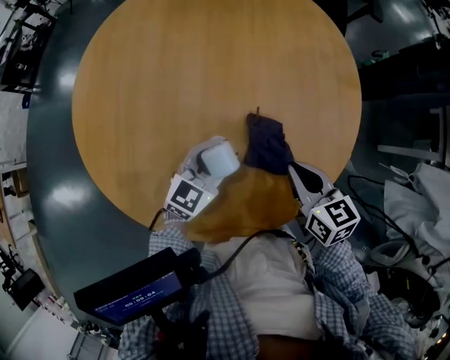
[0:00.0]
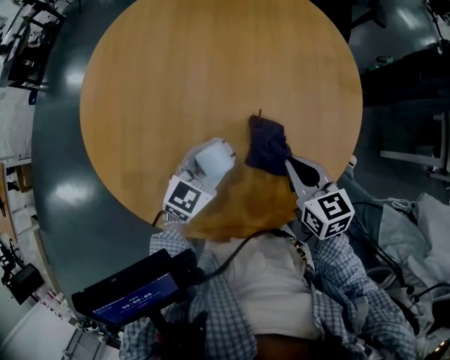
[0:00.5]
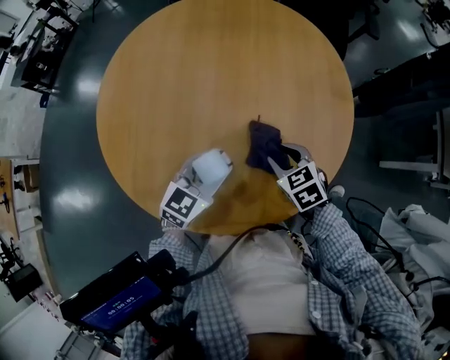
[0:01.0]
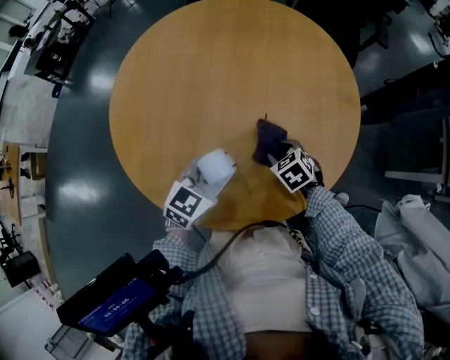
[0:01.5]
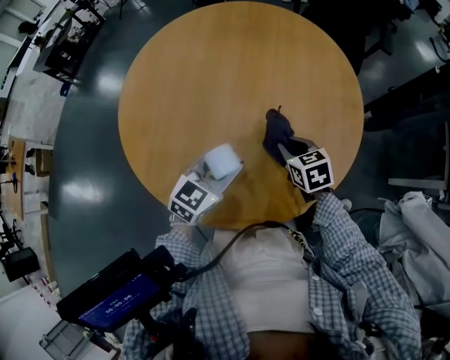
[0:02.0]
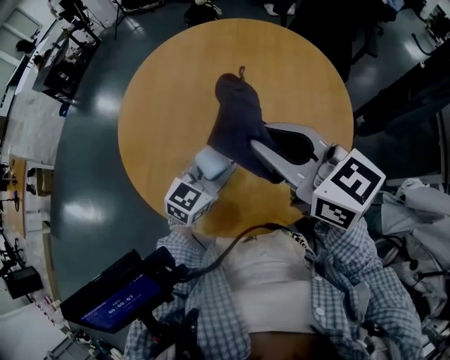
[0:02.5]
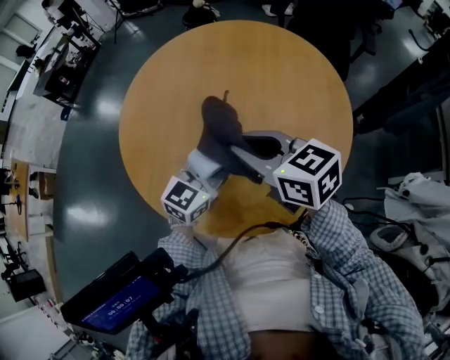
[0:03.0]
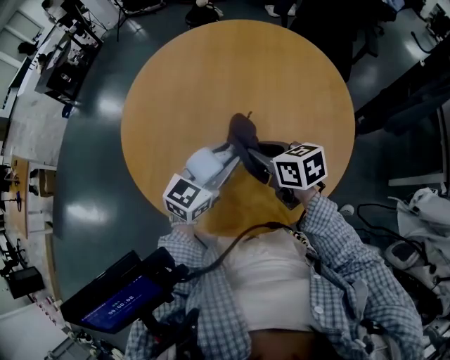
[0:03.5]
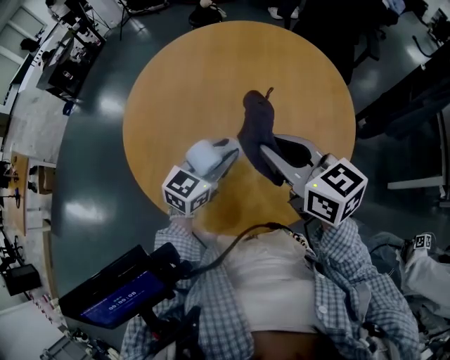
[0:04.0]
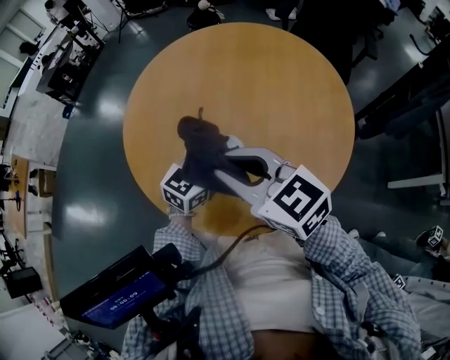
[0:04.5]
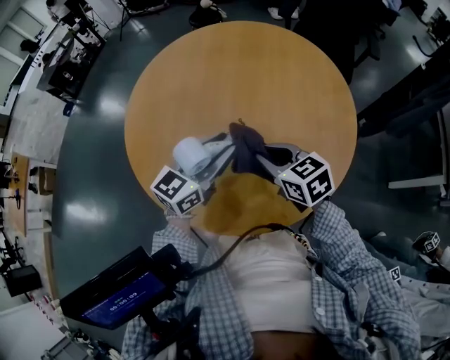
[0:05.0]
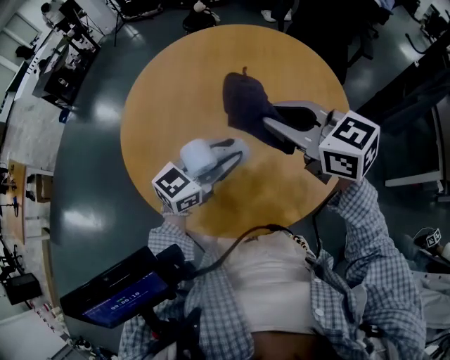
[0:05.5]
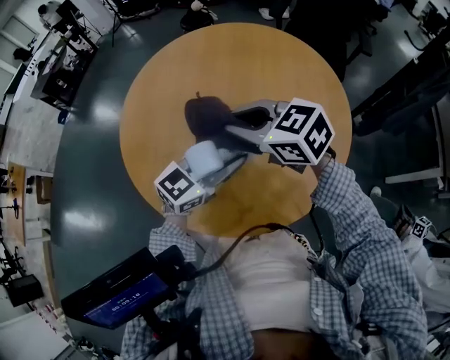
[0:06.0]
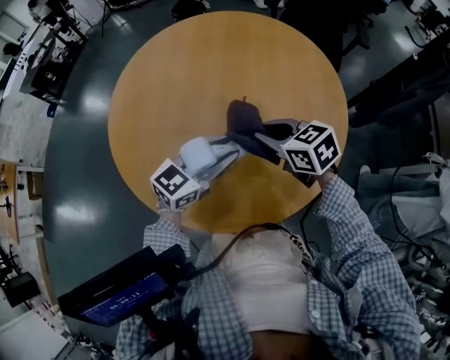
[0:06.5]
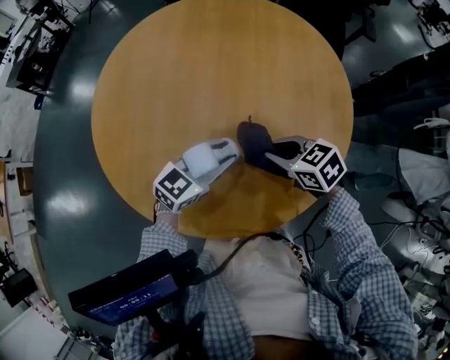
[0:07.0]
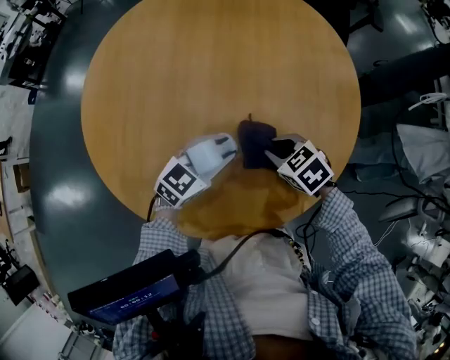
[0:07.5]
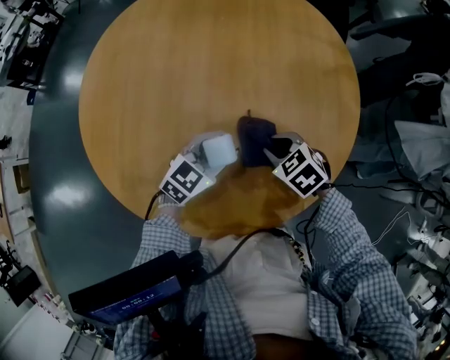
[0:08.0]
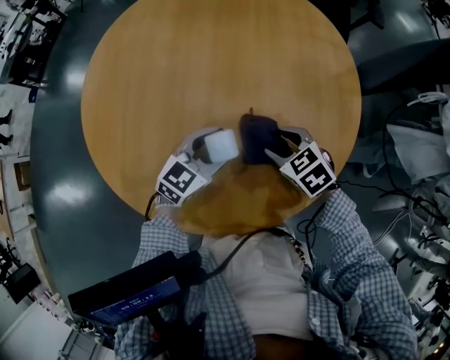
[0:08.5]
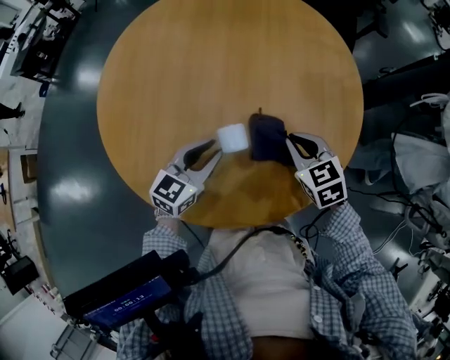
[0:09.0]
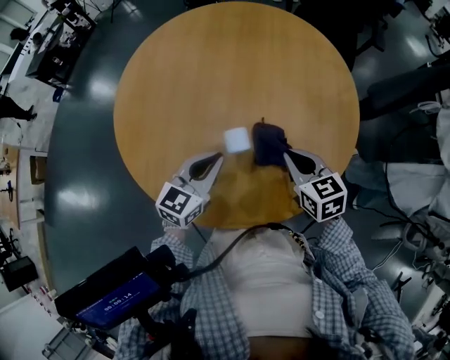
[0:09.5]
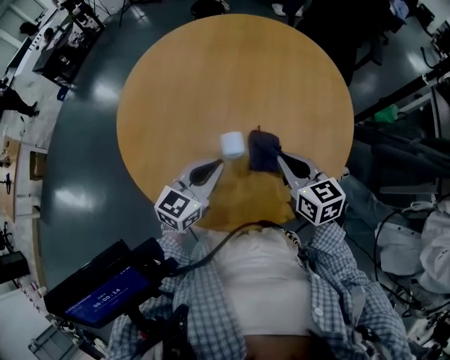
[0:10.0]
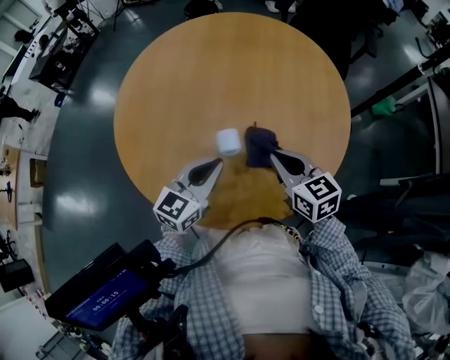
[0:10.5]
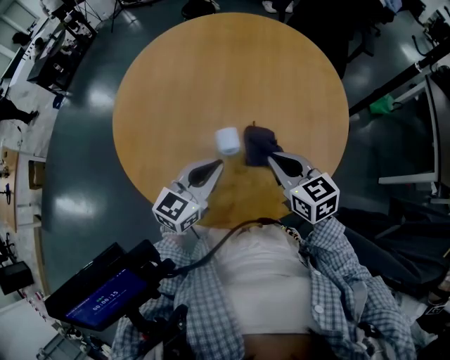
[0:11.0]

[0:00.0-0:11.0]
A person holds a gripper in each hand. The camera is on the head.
0:00.0 to 0:02.0: The left gripper goes approximately 5 cm upward; the right gripper shifts by some 10 cm, swivels approximately 20 degrees, and opens, then closes again.
0:02.0 to 0:03.5: The right gripper heads to the left, covering approximately 10 cm, travels upward and back again, some 30 cm each way, and rotates roughly 30 degrees. Meanwhile the left gripper ends up roughly 5 cm from where it was.
0:03.5 to 0:05.5: The right gripper swings up and down, some 15 cm each way, with 2 reversals, and turns by about 30 degrees.
0:05.5 to 0:07.5: The left gripper moves downward, some 15 cm, while the right gripper is displaced downward by about 30 cm, and angles its fingers downward, by roughly 40 degrees.
0:07.5 to 0:09.0: The left gripper shifts by about 5 cm. Meanwhile the right gripper travels upward by approximately 5 cm, rotates roughly 20 degrees, and opens and closes again.
0:09.0 to 0:11.0: Both grippers travel together upward, roughly 5 cm. The left gripper closes up. The right gripper changes its angle by approximately 20 degrees.

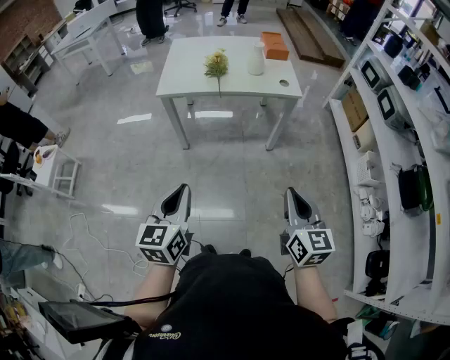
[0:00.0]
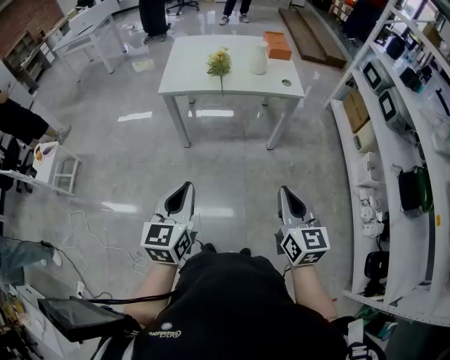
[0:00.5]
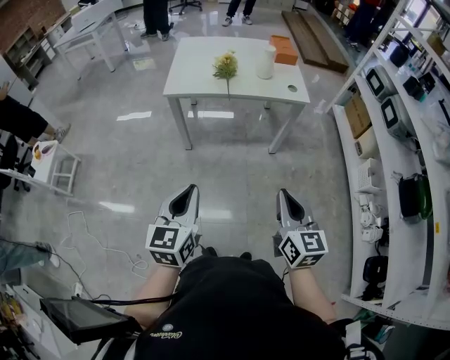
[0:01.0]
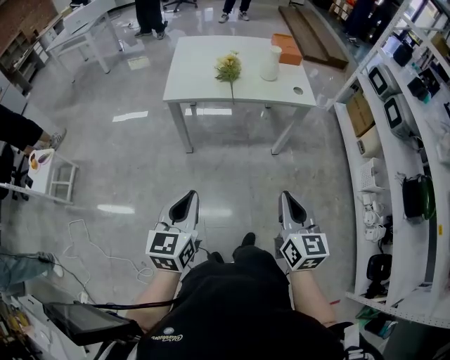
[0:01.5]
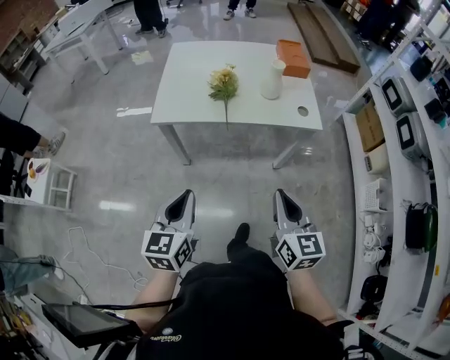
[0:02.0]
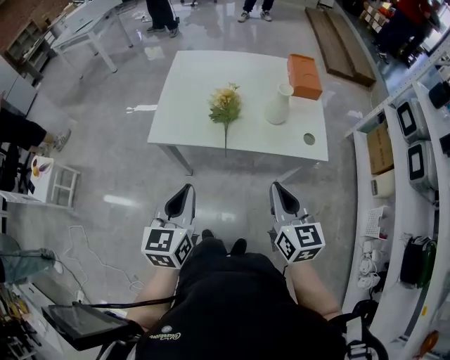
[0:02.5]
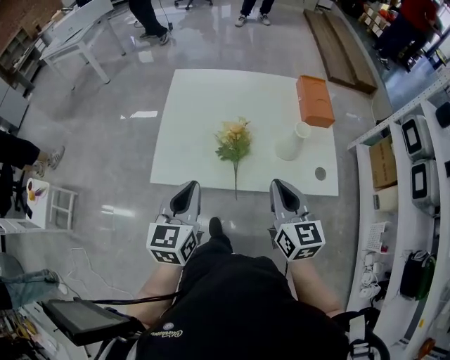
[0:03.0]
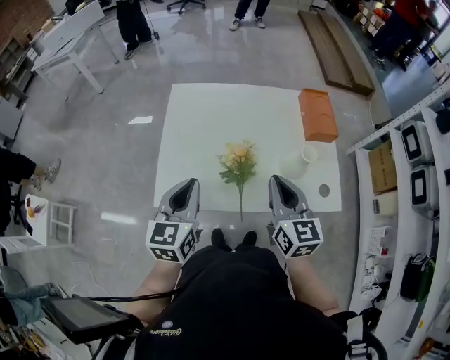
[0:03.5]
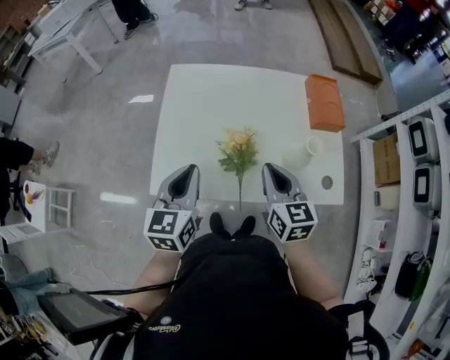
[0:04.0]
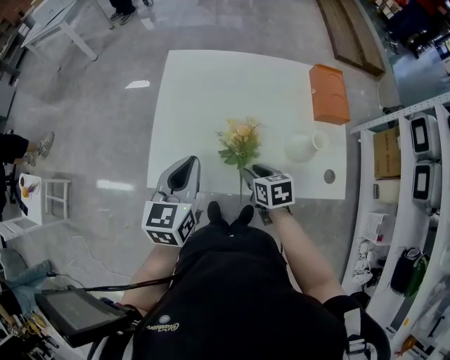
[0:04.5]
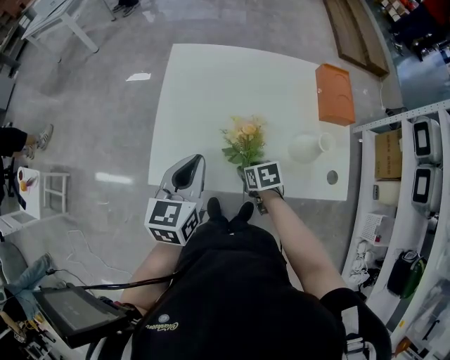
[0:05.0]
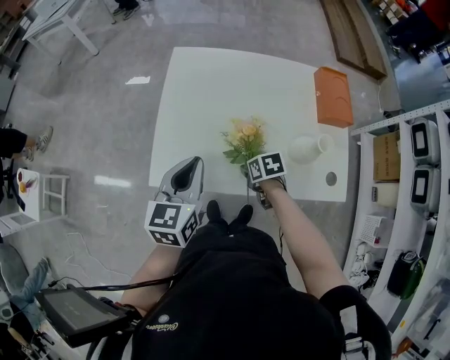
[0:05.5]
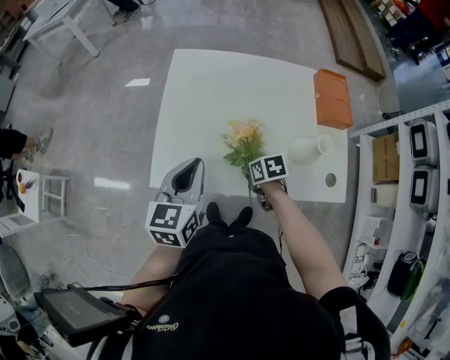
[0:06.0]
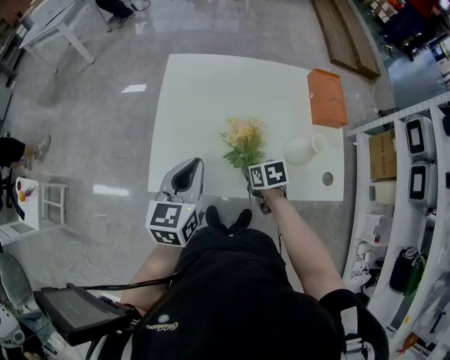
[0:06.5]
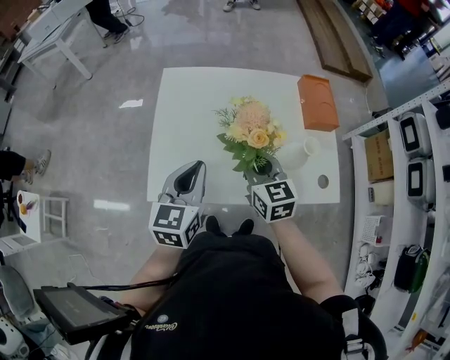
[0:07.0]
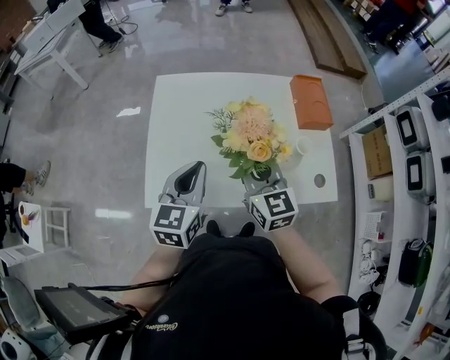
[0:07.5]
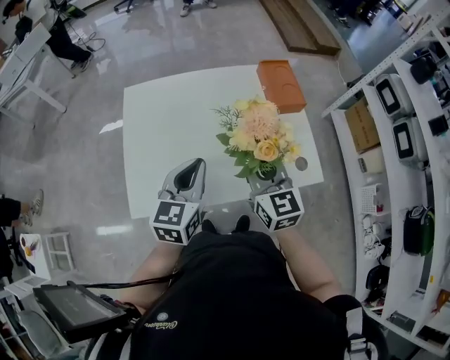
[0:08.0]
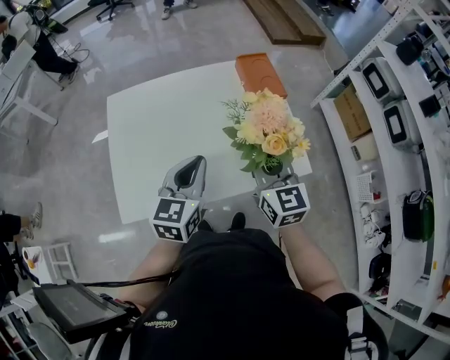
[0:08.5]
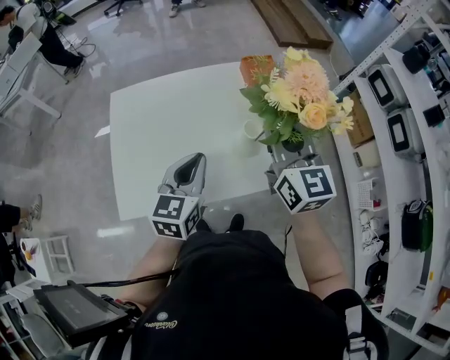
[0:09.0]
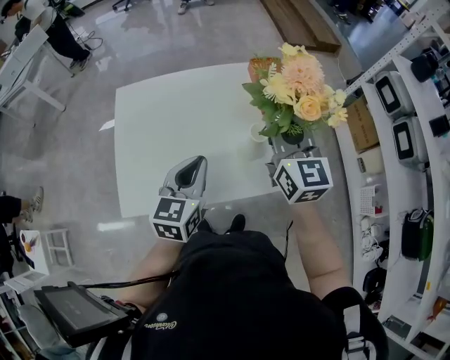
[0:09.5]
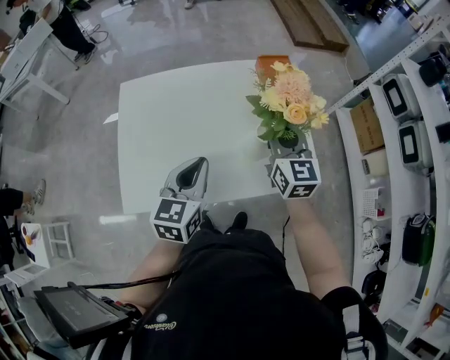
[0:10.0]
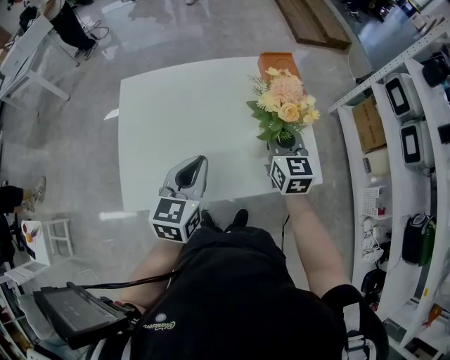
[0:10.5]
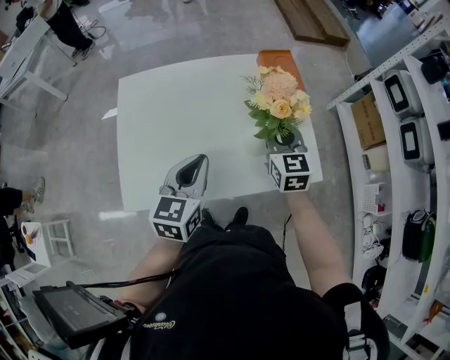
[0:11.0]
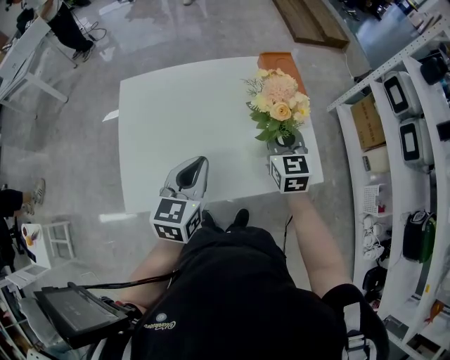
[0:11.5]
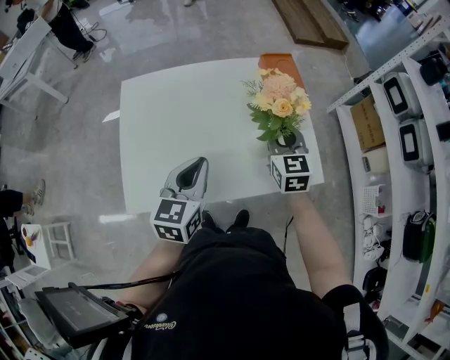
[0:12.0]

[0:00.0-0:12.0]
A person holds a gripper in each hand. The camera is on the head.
0:00.0 to 0:02.0: The grippers both shift forward by some 25 cm.
0:02.0 to 0:04.0: Both grippers are carried forward, some 40 cm.
0:04.0 to 0:06.0: The right gripper goes some 20 cm downward, angles its fingers downward, by approximately 40 degrees, and opens, then closes again.
0:06.0 to 0:08.0: The left gripper shifts by some 10 cm. Meanwhile the right gripper moves upward, some 25 cm, and tilts its fingers roughly 50 degrees upward.
0:08.0 to 0:10.0: The right gripper heads forward and to the right, covering some 15 cm.
0:10.0 to 0:12.0: The right gripper is displaced downward by some 5 cm.

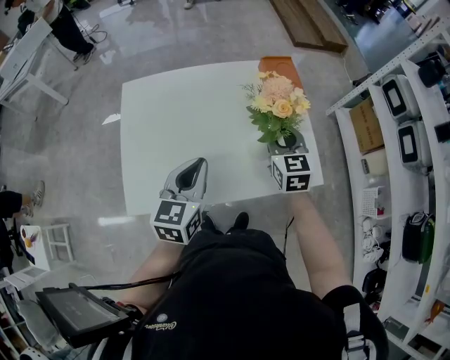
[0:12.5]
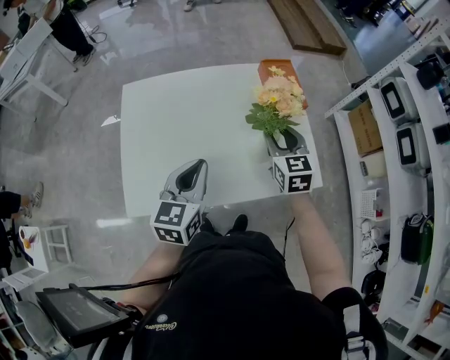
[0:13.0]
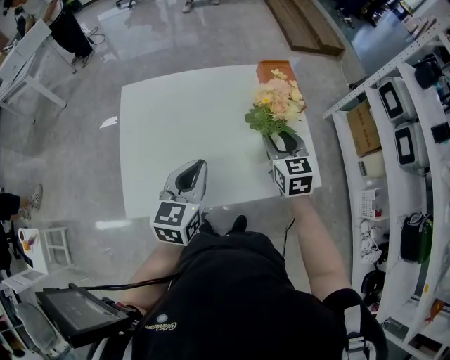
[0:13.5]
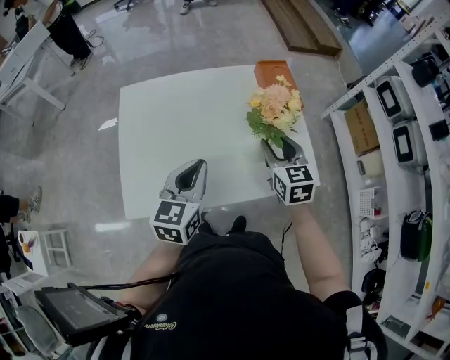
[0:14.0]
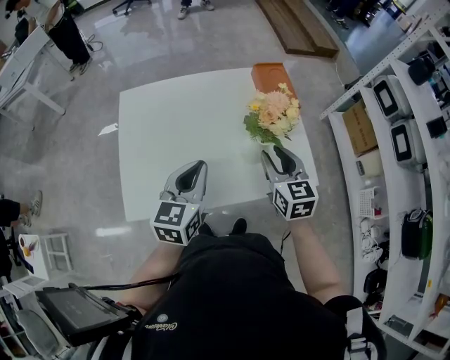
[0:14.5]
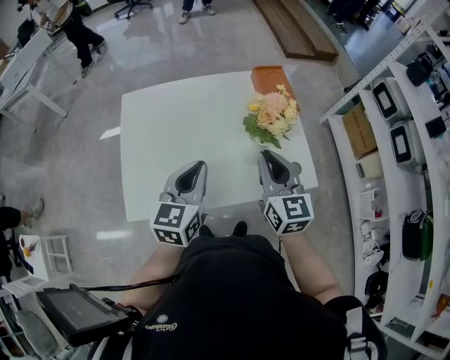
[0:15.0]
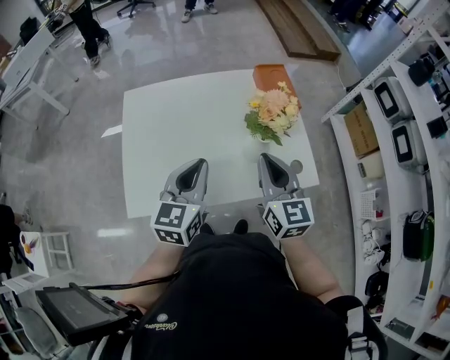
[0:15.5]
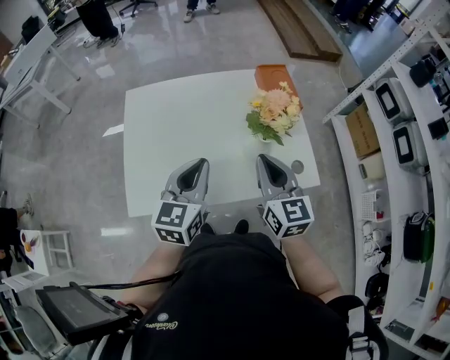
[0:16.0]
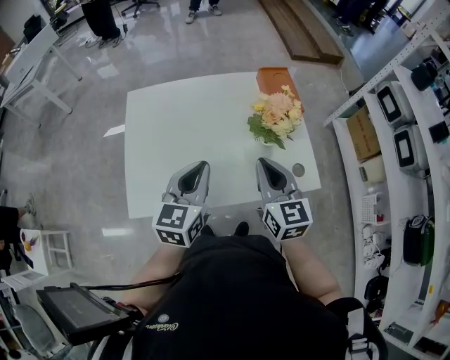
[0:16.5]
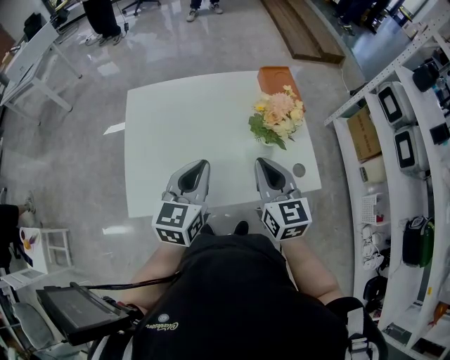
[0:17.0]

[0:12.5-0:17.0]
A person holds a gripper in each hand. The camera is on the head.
0:12.5 to 0:14.5: The right gripper shifts approximately 5 cm backward.
0:14.5 to 0:17.0: The right gripper moves to the left, some 5 cm, and closes.
